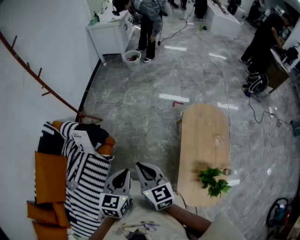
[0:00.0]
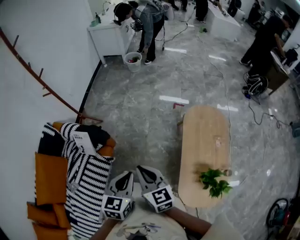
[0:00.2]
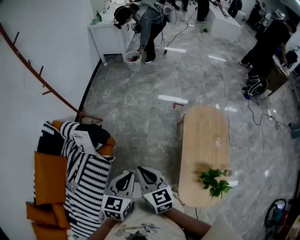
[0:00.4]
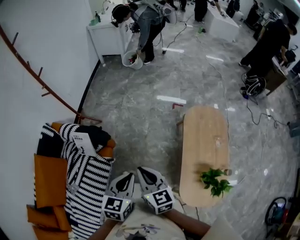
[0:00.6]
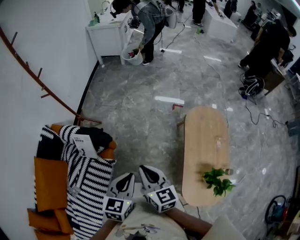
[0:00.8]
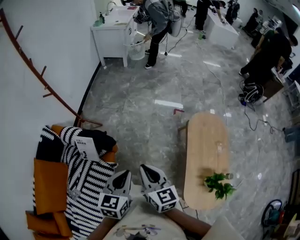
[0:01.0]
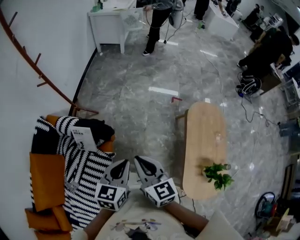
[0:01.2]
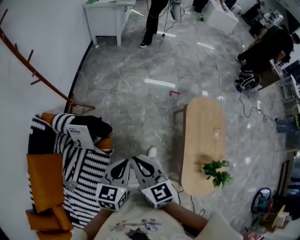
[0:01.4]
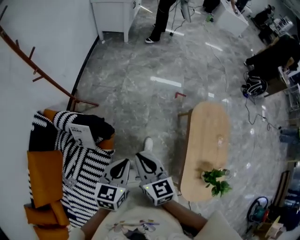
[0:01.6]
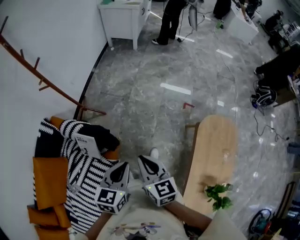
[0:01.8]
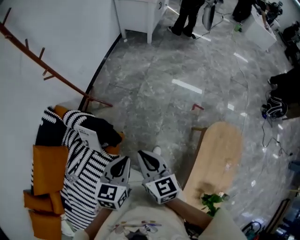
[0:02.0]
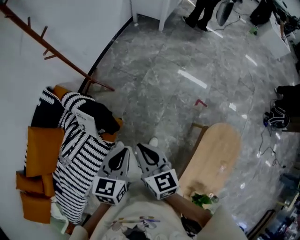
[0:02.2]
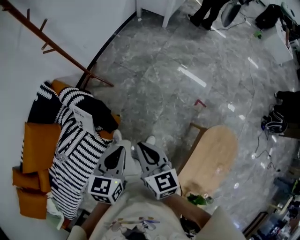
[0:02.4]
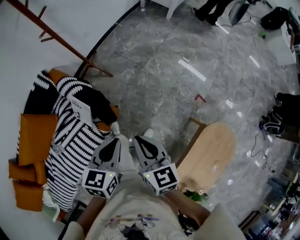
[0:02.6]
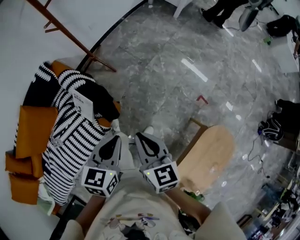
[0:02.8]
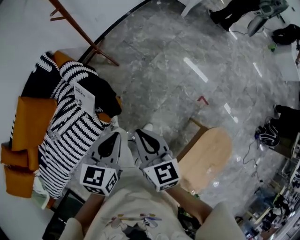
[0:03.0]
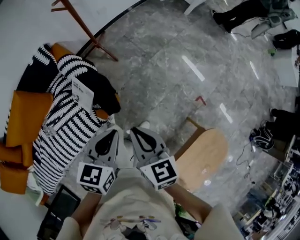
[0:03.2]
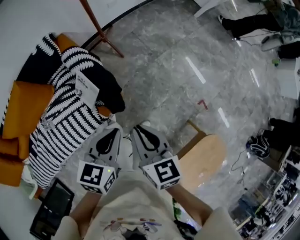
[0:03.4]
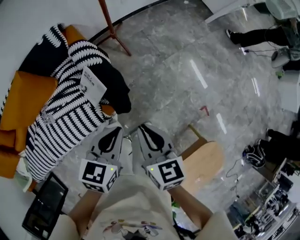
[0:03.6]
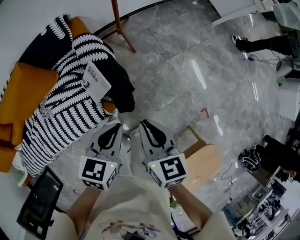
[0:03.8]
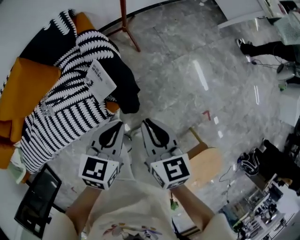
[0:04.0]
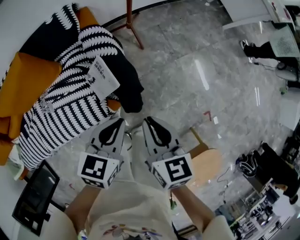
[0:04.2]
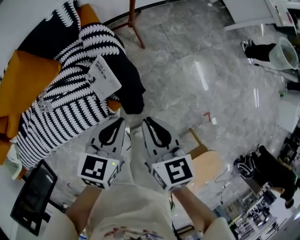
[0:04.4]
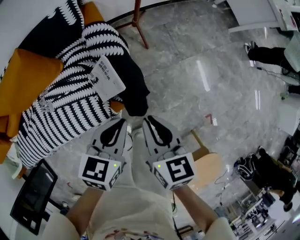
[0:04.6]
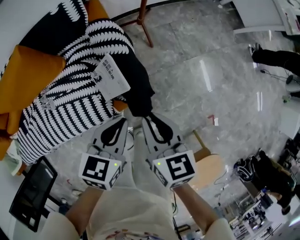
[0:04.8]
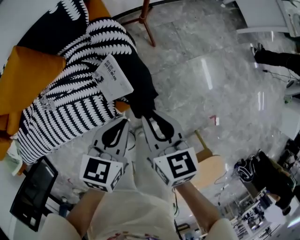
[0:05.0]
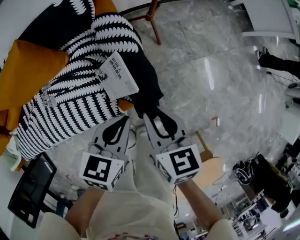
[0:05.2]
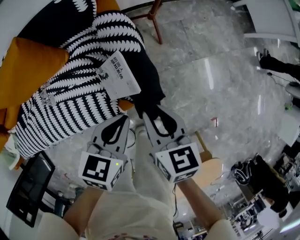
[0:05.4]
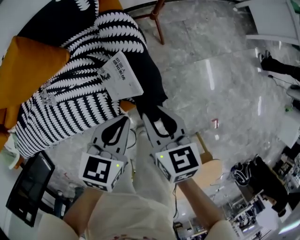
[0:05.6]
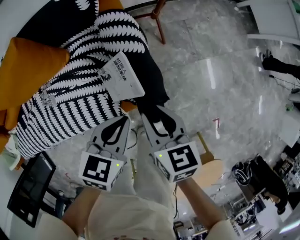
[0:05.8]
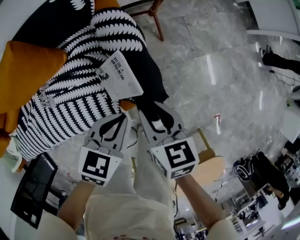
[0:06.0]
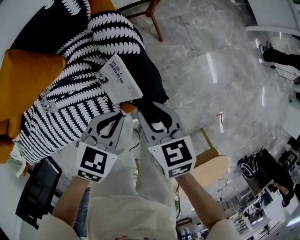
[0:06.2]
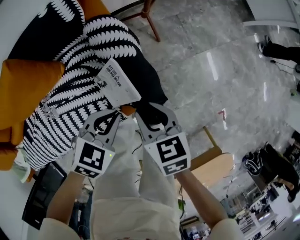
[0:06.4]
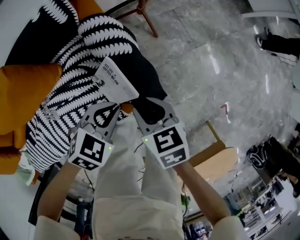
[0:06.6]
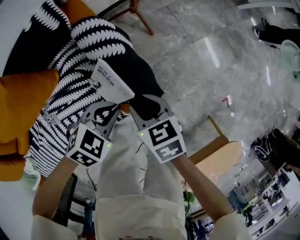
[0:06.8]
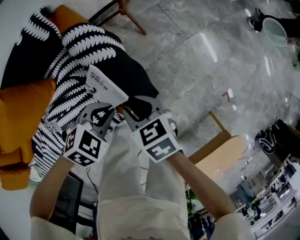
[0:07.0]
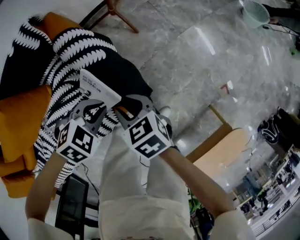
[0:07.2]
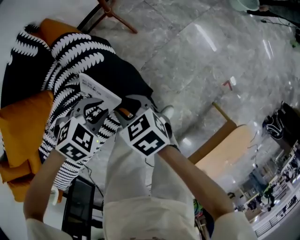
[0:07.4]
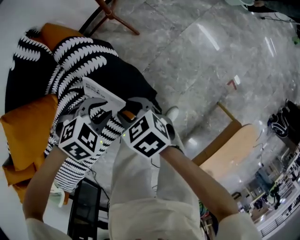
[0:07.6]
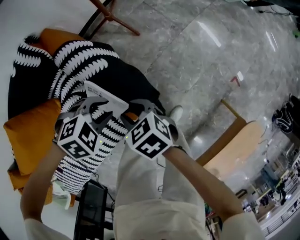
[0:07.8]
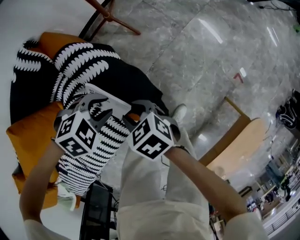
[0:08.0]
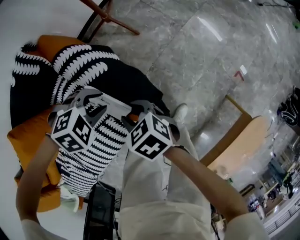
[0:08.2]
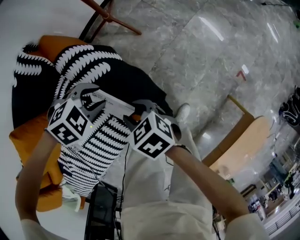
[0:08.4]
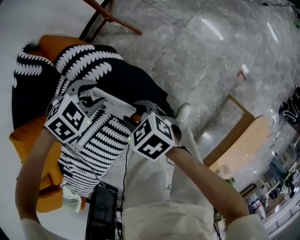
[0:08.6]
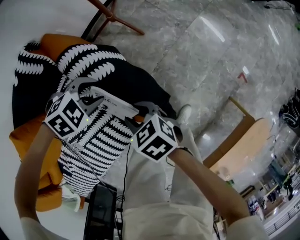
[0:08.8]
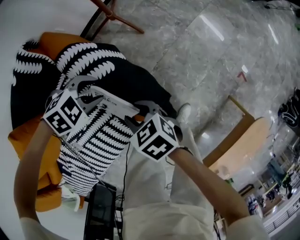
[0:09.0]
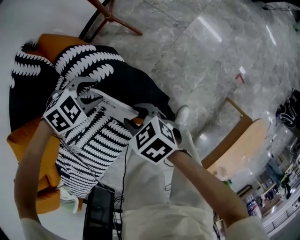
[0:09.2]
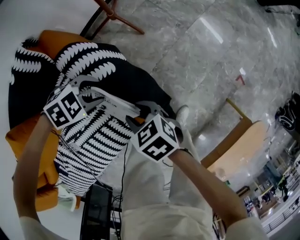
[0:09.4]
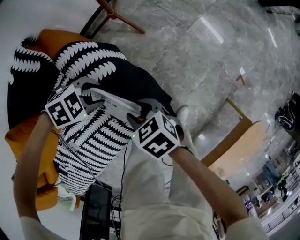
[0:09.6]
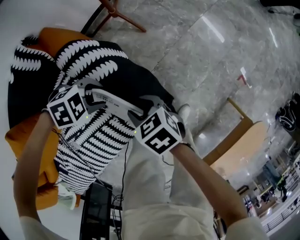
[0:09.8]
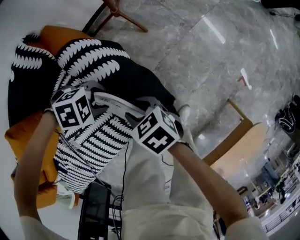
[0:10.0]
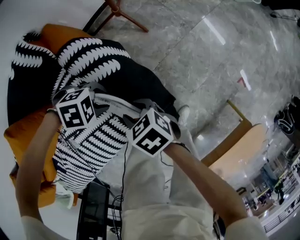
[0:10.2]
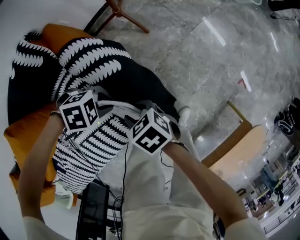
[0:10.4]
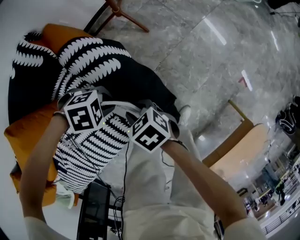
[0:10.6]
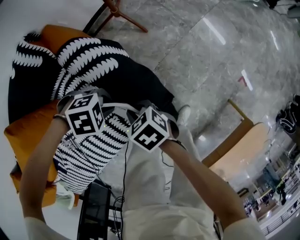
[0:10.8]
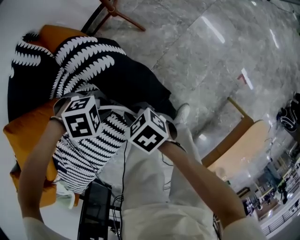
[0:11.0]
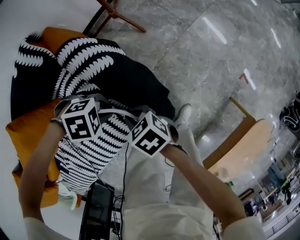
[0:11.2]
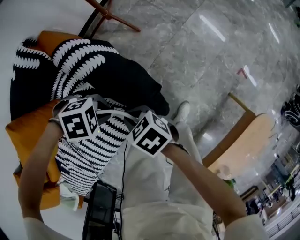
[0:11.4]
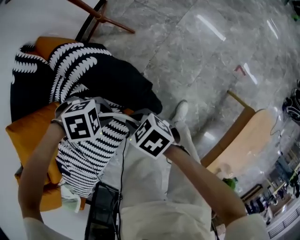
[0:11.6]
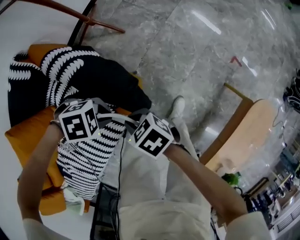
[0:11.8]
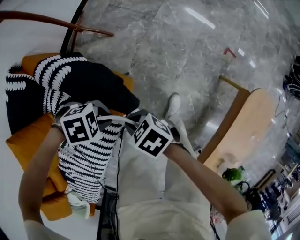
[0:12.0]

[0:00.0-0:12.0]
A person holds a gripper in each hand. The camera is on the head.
0:00.0 to 0:01.6: The grippers both shift to the left and forward by roughly 20 cm.
0:01.6 to 0:03.0: The right gripper moves approximately 20 cm, and rotates about 30 degrees; the left gripper moves roughly 20 cm, and changes its angle by roughly 30 degrees.
0:03.0 to 0:04.4: The two grippers go roughly 20 cm to the left, downward and forward. The right gripper rotates about 20 degrees.
0:04.4 to 0:06.0: The right gripper moves downward, to the left and forward, some 15 cm, and opens. Meanwhile the left gripper moves downward and to the left, about 10 cm.
0:06.0 to 0:07.6: The two grippers go approximately 10 cm downward. The left gripper rotates about 70 degrees, and opens its fingers.
0:07.6 to 0:09.0: The left gripper ends up approximately 10 cm from where it was.
0:09.0 to 0:10.4: The left gripper shifts by some 5 cm, and closes.
0:10.4 to 0:12.0: The two grippers go about 20 cm to the left. The right gripper closes its fingers.

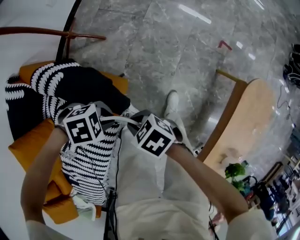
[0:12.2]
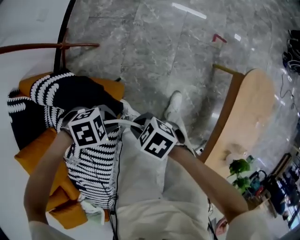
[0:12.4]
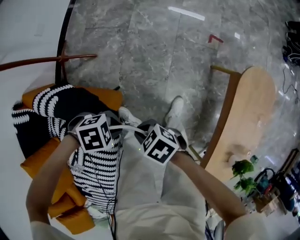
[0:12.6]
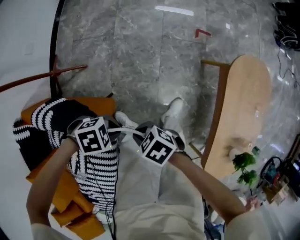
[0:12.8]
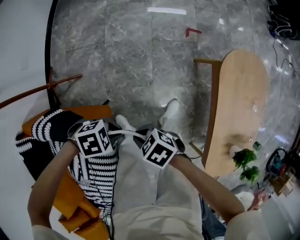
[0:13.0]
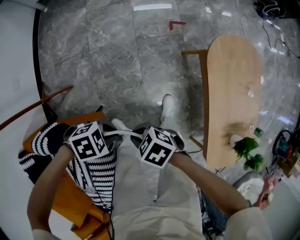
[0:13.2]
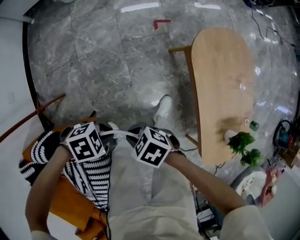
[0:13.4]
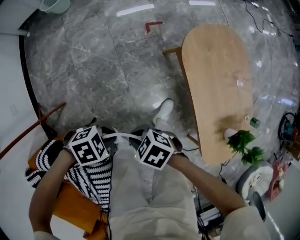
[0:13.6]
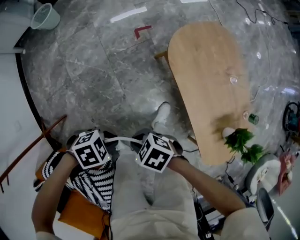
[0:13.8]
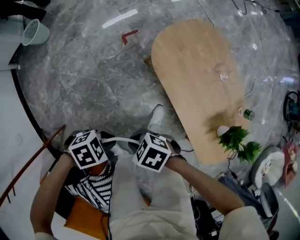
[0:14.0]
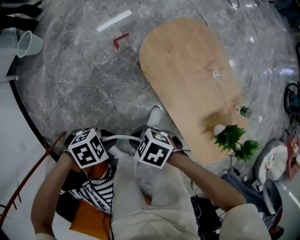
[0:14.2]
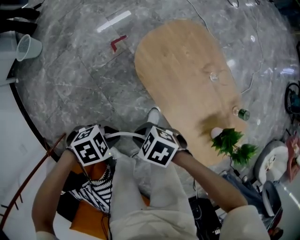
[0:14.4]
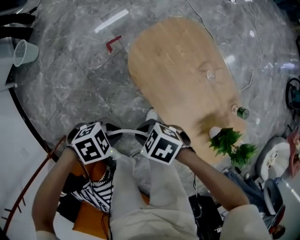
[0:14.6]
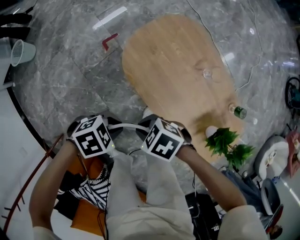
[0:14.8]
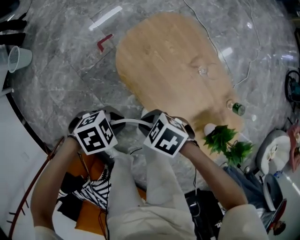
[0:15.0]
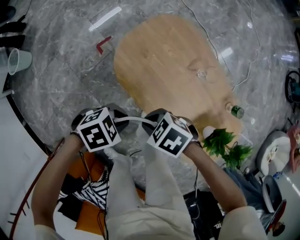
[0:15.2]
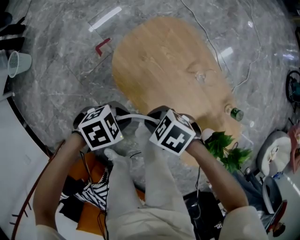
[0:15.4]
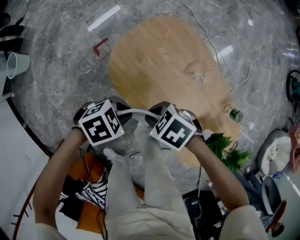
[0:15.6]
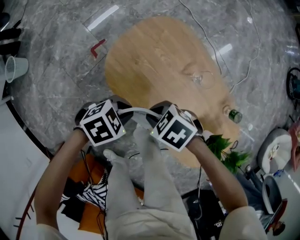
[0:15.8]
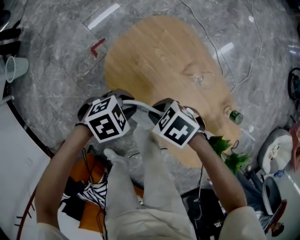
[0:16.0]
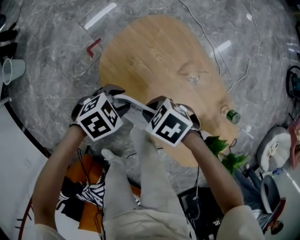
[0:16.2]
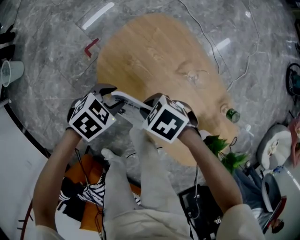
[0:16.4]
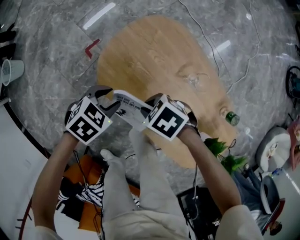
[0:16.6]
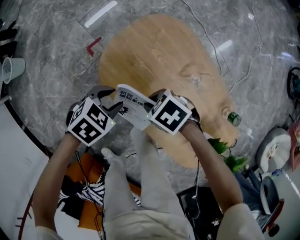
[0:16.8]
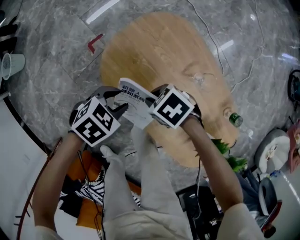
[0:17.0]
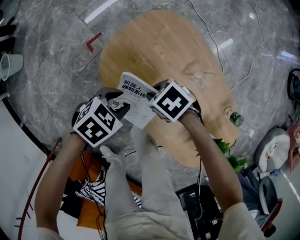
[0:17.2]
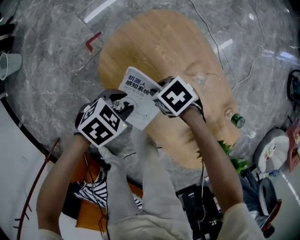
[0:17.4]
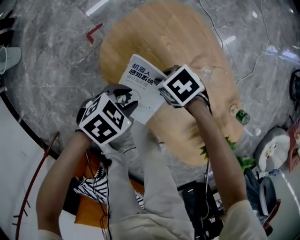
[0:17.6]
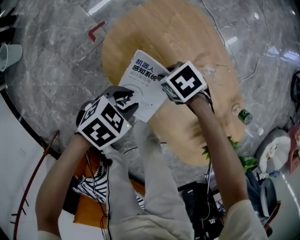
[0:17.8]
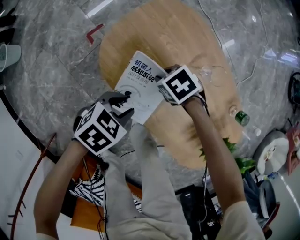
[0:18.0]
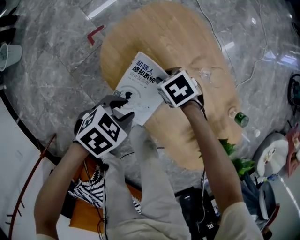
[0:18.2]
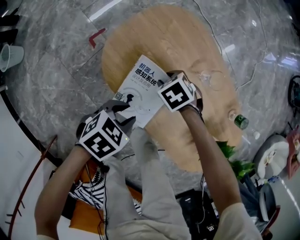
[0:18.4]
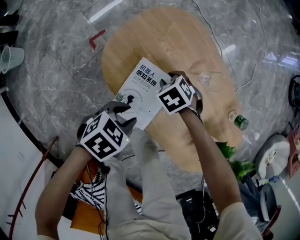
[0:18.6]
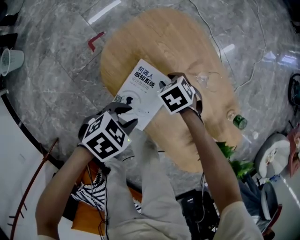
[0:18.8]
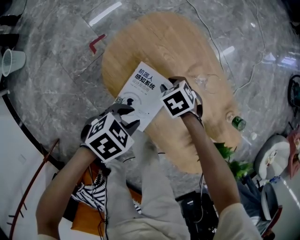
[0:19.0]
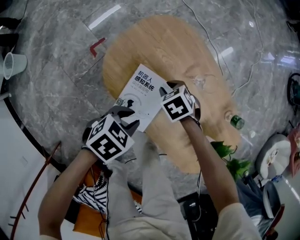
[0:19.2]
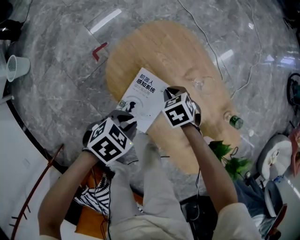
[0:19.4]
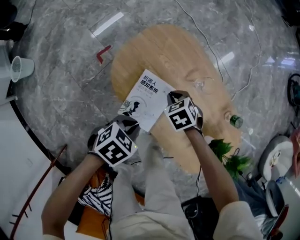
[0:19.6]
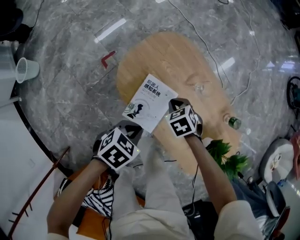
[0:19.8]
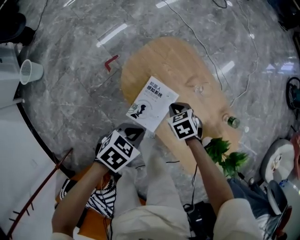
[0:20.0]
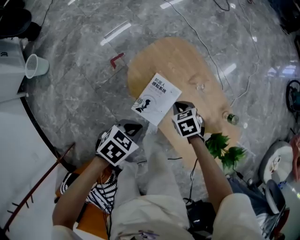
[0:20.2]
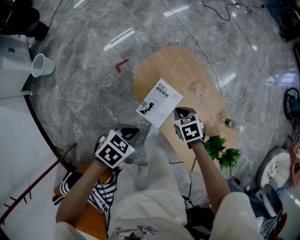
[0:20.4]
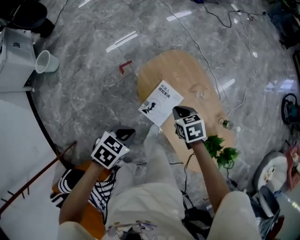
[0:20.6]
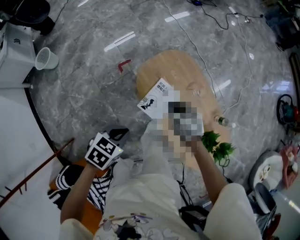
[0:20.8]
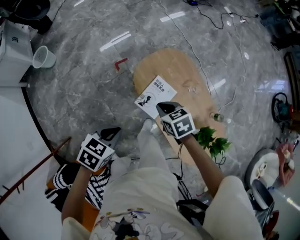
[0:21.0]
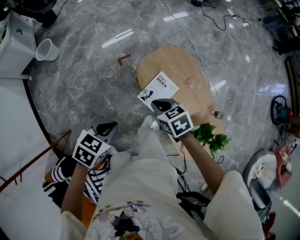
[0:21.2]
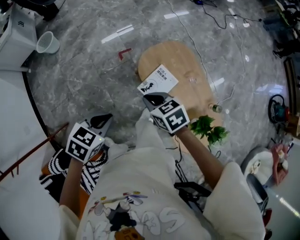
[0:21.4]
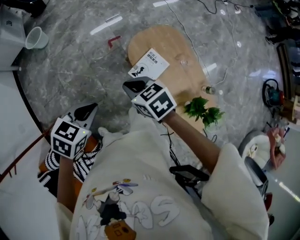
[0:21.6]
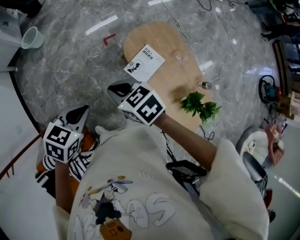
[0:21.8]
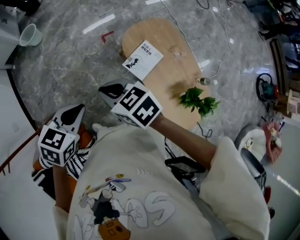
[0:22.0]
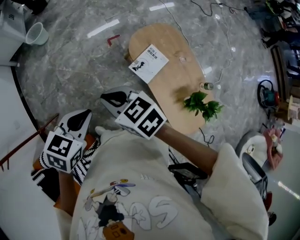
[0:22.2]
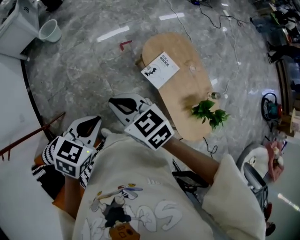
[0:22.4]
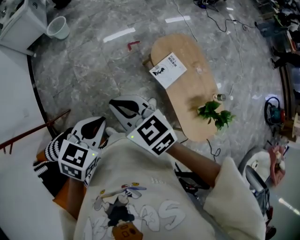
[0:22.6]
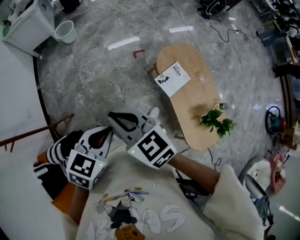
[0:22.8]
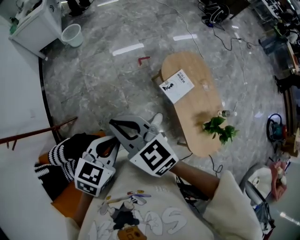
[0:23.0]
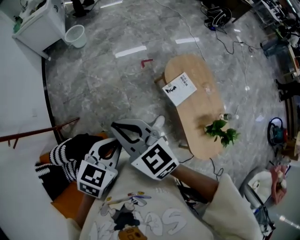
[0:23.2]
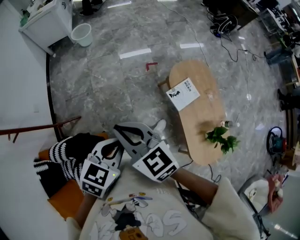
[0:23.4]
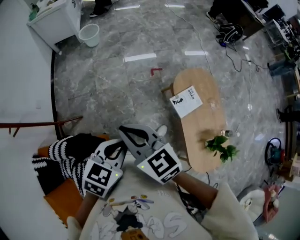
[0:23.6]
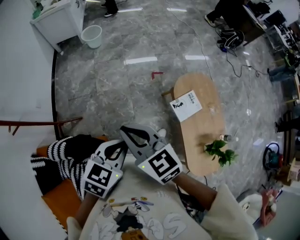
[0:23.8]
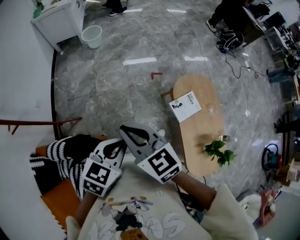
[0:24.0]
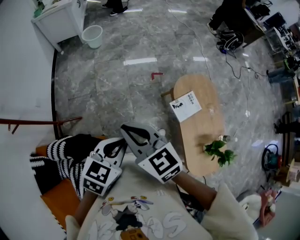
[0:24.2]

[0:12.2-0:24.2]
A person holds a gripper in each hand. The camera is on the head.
0:12.2 to 0:13.8: The left gripper moves some 40 cm, and rotates roughly 40 degrees. Meanwhile the right gripper ends up about 35 cm from where it was, and swivels about 40 degrees.
0:13.8 to 0:15.2: The grippers both shift backward and to the left by about 35 cm.
0:15.2 to 0:16.6: The right gripper shifts by roughly 15 cm. The left gripper shifts by some 15 cm, swivels approximately 20 degrees, and opens up.
0:16.6 to 0:18.2: The right gripper is displaced downward by about 10 cm, while the left gripper moves about 10 cm.
0:18.2 to 0:19.8: The two grippers go about 10 cm upward. The right gripper closes its fingers, while the left gripper closes.
0:19.8 to 0:21.2: Both grippers travel together upward, roughly 25 cm. The left gripper turns by roughly 30 degrees, while the right gripper rotates about 20 degrees.
0:21.2 to 0:22.6: The right gripper is displaced to the left, upward and backward by approximately 40 cm, and turns by some 30 degrees. Meanwhile the left gripper heads backward, to the left and upward, covering about 25 cm.
0:22.6 to 0:24.2: The left gripper goes approximately 5 cm to the left. Meanwhile the right gripper goes some 10 cm to the left.
